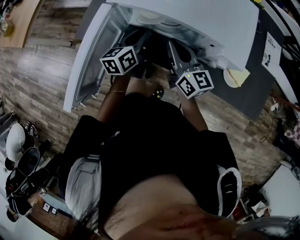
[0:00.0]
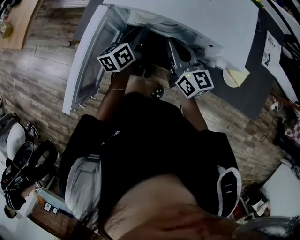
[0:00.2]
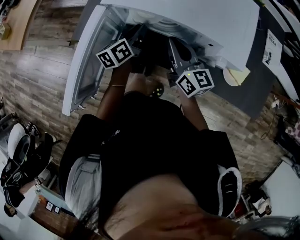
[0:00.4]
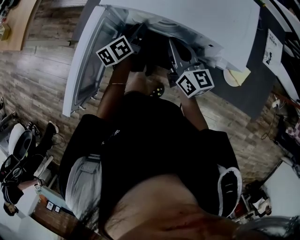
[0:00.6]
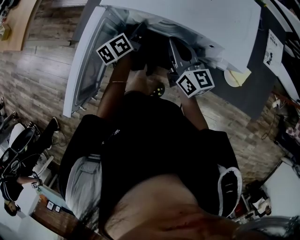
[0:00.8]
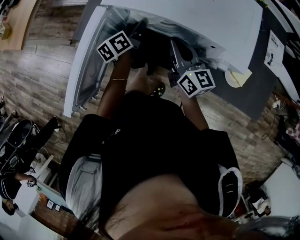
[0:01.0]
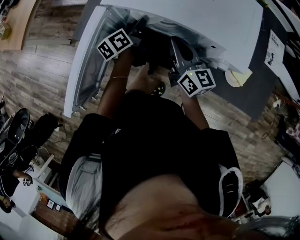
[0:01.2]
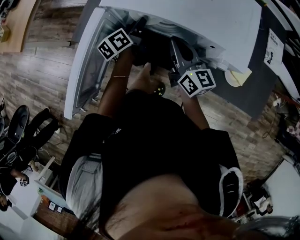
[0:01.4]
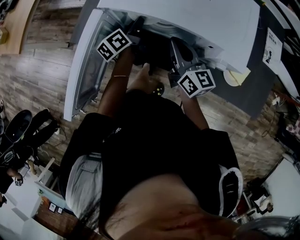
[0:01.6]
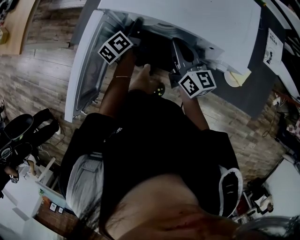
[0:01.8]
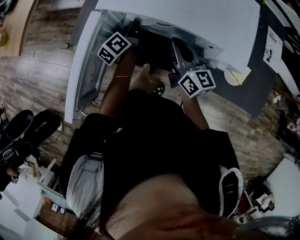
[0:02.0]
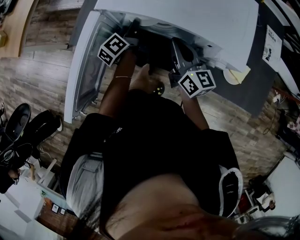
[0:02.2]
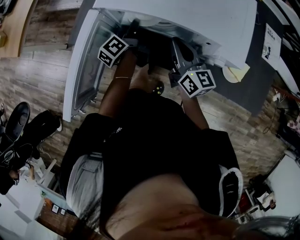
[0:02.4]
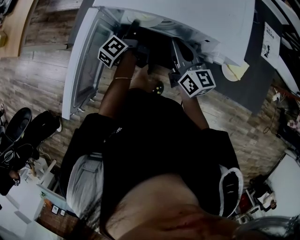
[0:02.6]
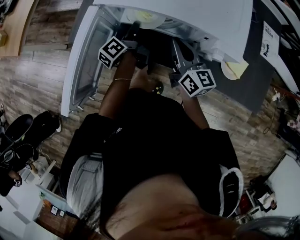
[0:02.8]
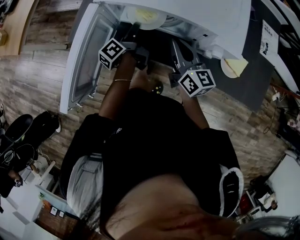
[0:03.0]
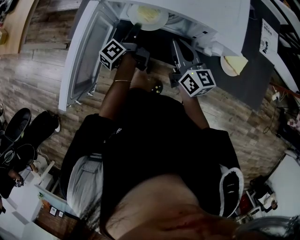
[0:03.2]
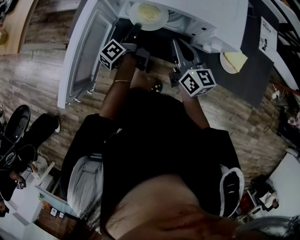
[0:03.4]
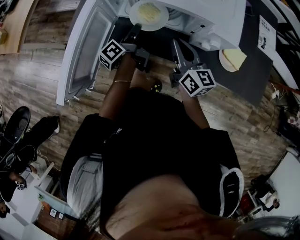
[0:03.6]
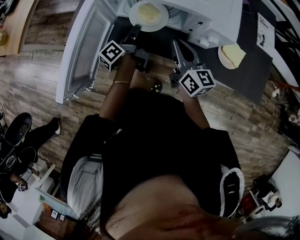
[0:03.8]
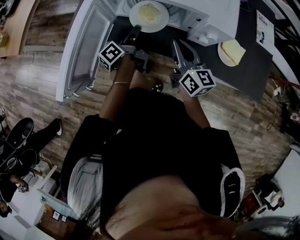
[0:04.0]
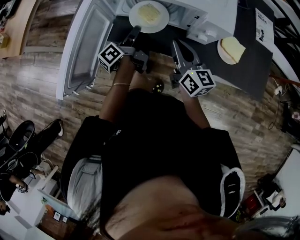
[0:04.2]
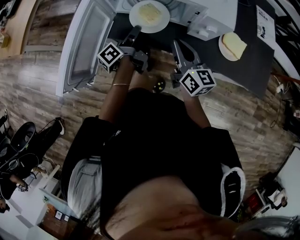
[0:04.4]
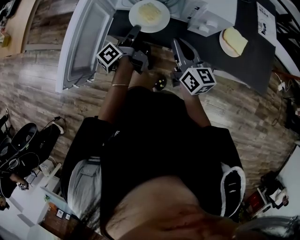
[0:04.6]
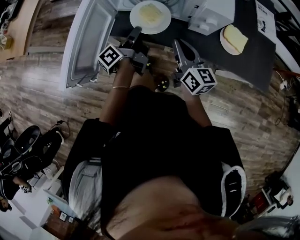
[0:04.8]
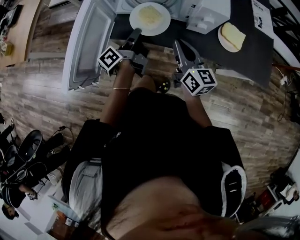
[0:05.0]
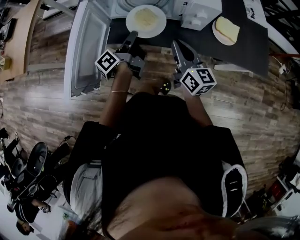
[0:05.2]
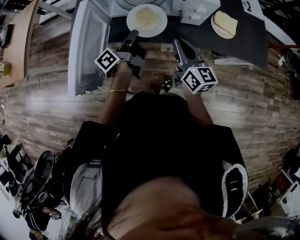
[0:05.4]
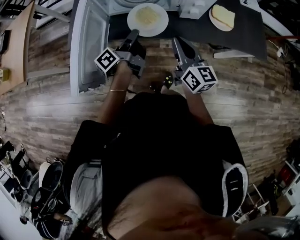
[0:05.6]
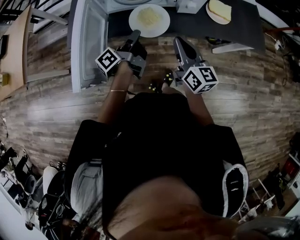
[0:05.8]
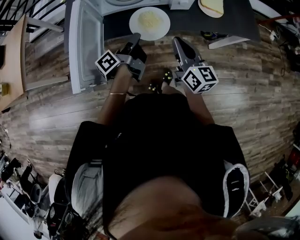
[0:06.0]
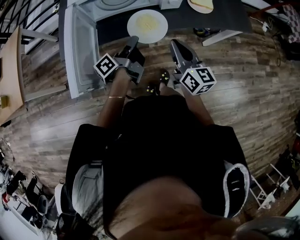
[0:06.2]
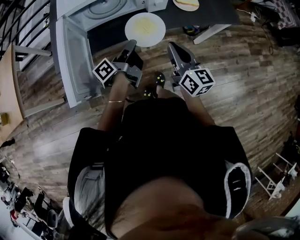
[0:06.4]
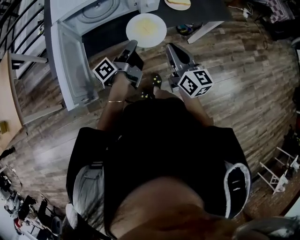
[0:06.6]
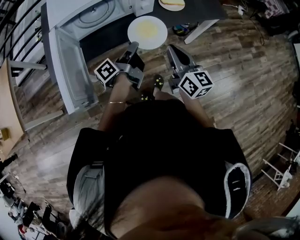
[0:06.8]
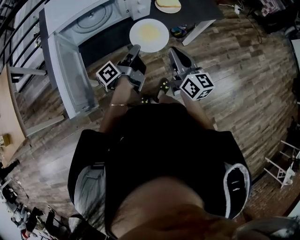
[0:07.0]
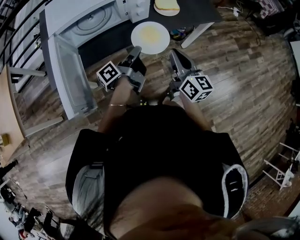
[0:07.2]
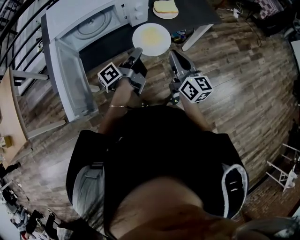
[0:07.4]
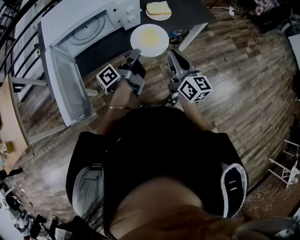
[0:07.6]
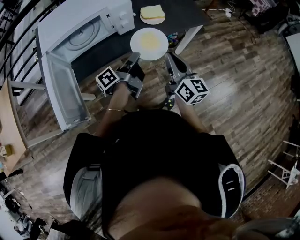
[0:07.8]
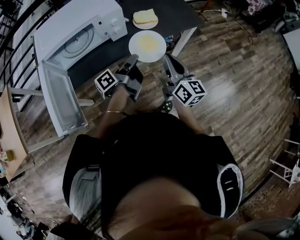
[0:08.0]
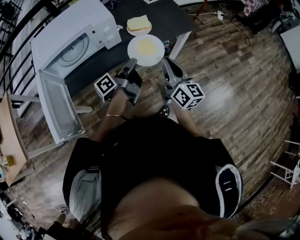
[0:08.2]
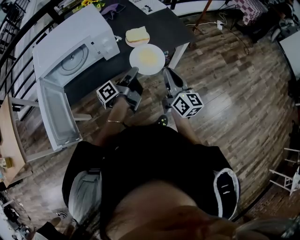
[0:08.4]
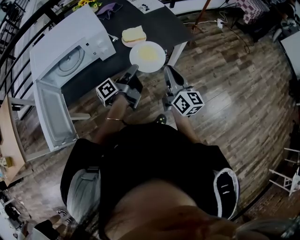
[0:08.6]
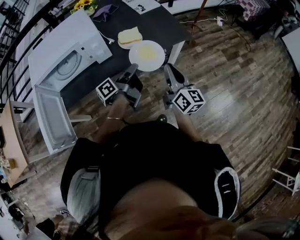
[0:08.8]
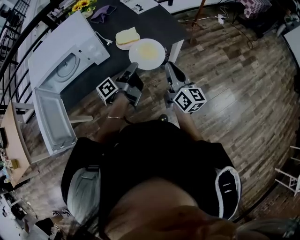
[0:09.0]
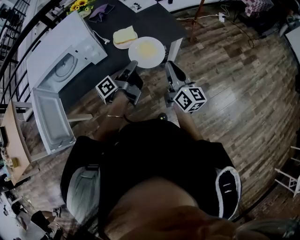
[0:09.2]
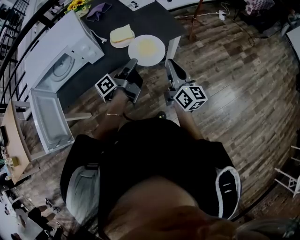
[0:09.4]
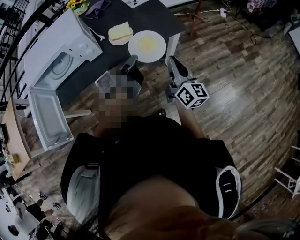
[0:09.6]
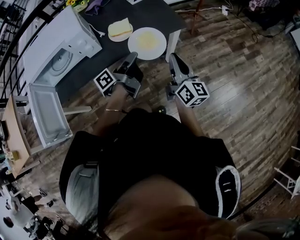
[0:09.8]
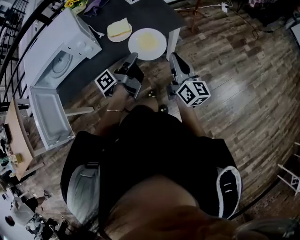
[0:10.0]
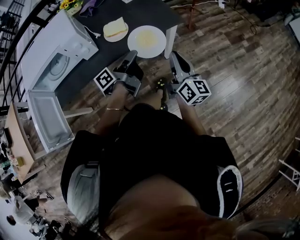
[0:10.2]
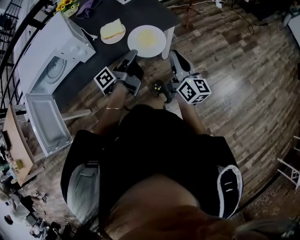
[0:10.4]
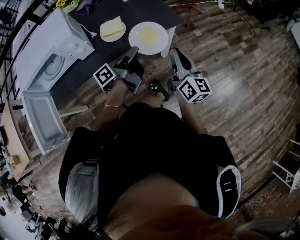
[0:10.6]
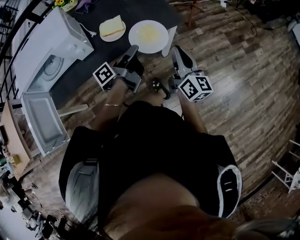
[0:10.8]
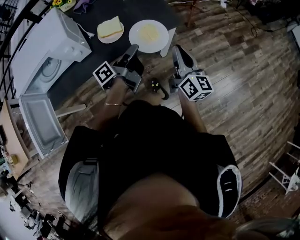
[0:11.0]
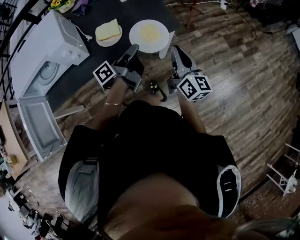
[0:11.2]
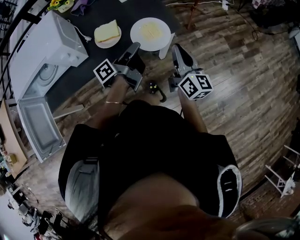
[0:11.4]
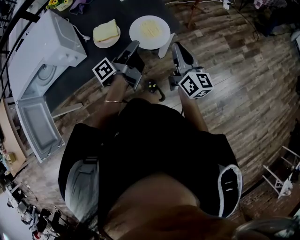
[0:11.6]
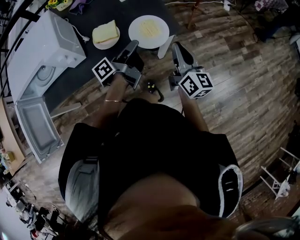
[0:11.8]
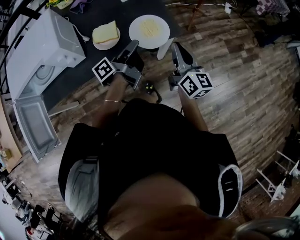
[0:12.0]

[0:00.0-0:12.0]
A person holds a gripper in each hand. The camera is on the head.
0:00.0 to 0:01.6: The left gripper heads forward, covering approximately 5 cm, and changes its angle by approximately 30 degrees.
0:01.6 to 0:03.0: The left gripper swivels some 20 degrees, and closes up.
0:03.0 to 0:04.4: Both grippers move backward, approximately 10 cm.
0:04.4 to 0:06.0: The two grippers go approximately 10 cm backward. The right gripper changes its angle by about 20 degrees; the left gripper changes its angle by some 30 degrees.
0:06.0 to 0:07.6: The grippers both shift to the right by roughly 15 cm. The left gripper turns by approximately 20 degrees.
0:07.6 to 0:09.0: The grippers both shift to the right and forward by about 20 cm.
0:09.0 to 0:10.4: The grippers both shift to the right by roughly 10 cm.
0:10.4 to 0:12.0: The two grippers go roughly 15 cm forward.

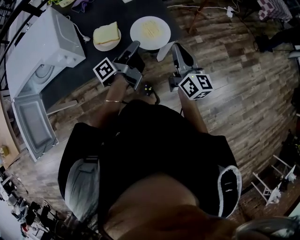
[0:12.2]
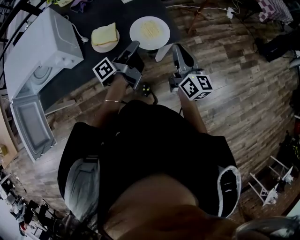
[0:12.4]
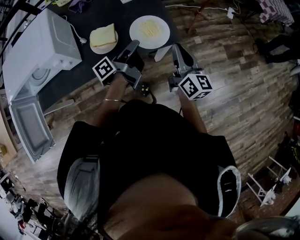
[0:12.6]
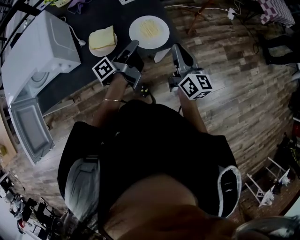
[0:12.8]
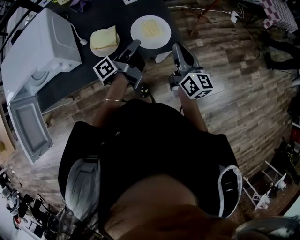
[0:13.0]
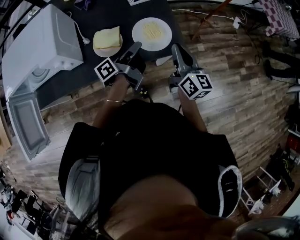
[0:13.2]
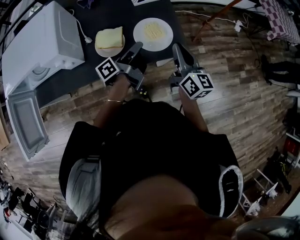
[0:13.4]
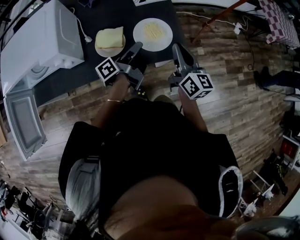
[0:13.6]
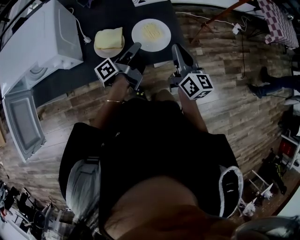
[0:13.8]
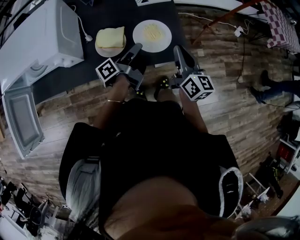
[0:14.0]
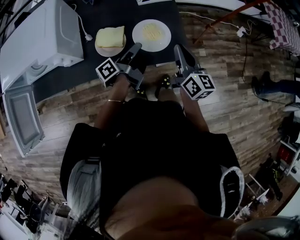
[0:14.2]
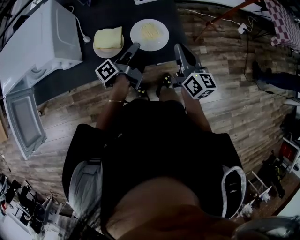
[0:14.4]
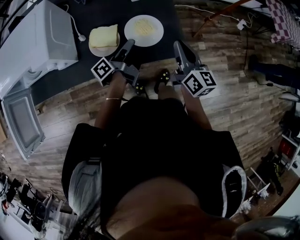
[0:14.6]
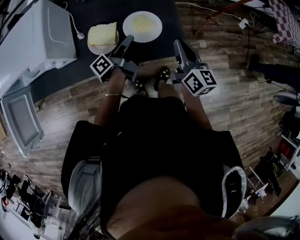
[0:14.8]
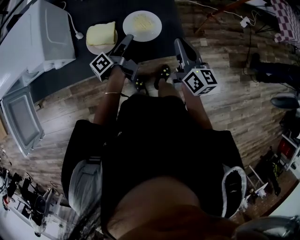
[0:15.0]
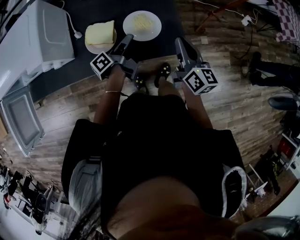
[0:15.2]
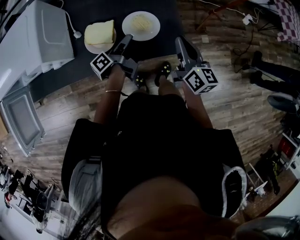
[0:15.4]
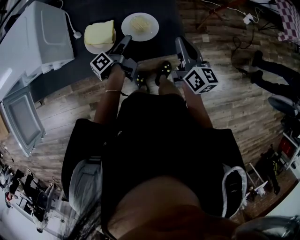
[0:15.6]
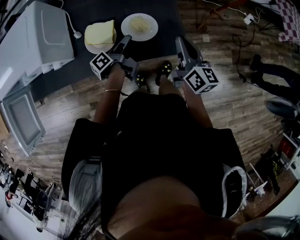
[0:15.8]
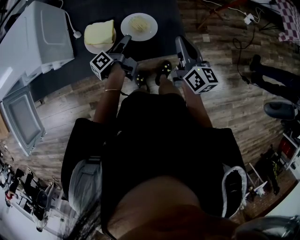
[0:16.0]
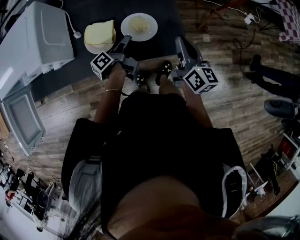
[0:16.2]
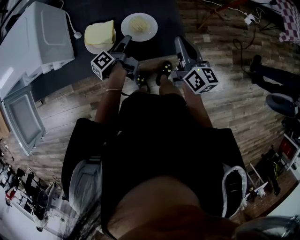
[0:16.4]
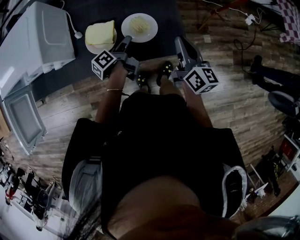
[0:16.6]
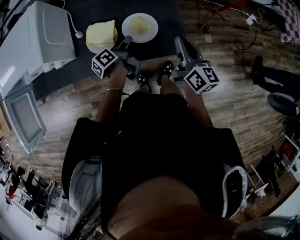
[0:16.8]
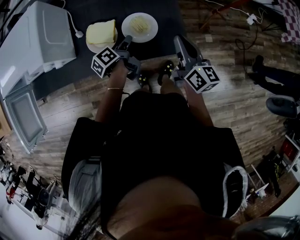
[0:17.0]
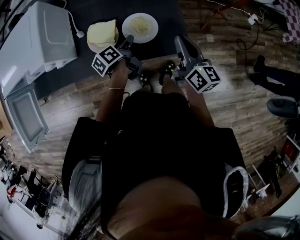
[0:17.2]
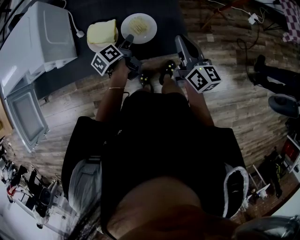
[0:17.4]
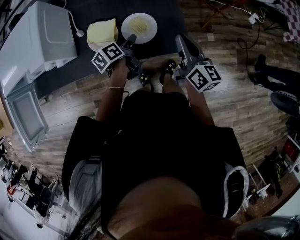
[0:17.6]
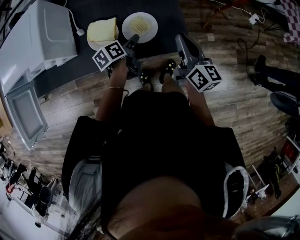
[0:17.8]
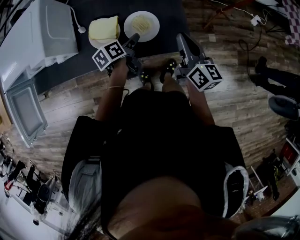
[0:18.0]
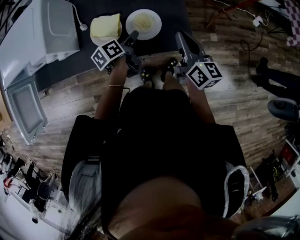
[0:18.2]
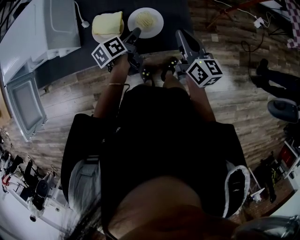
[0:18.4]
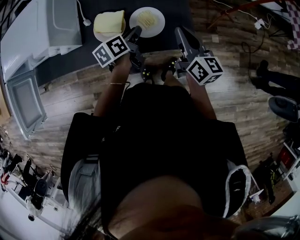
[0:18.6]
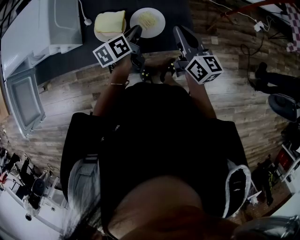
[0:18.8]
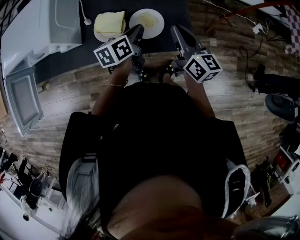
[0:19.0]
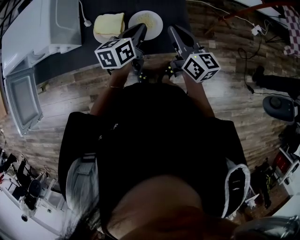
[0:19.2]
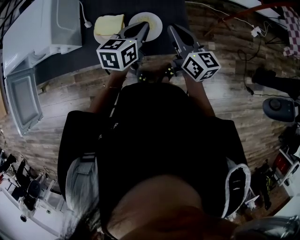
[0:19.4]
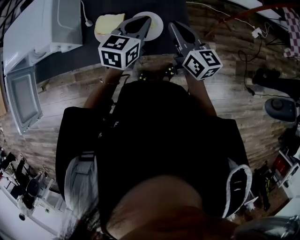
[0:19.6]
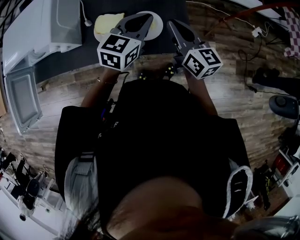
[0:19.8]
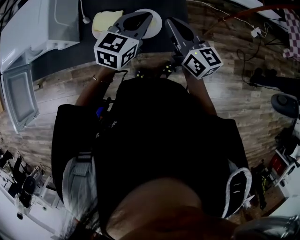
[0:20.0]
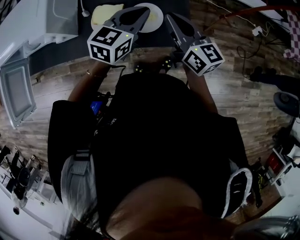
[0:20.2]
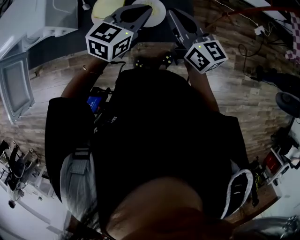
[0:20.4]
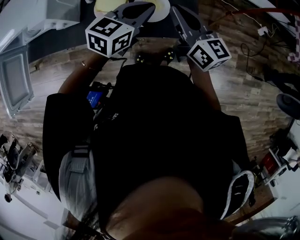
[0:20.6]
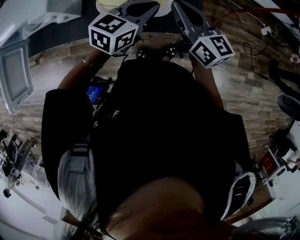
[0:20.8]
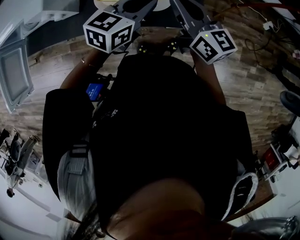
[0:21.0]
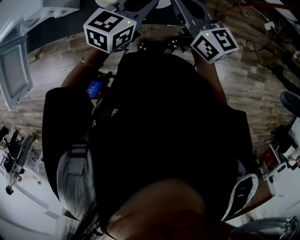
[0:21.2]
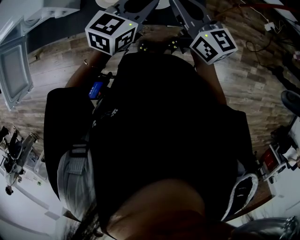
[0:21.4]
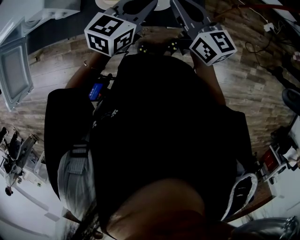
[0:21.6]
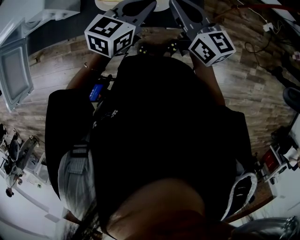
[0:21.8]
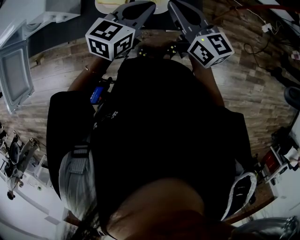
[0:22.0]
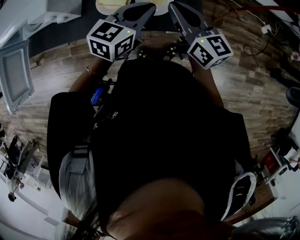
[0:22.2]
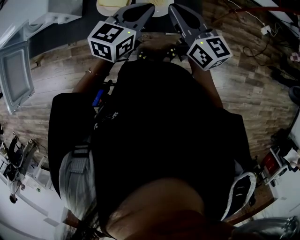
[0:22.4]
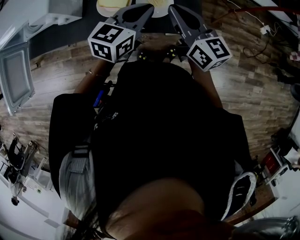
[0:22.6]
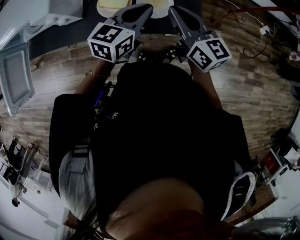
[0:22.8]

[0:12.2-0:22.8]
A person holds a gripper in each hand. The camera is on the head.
0:12.2 to 0:13.8: The two grippers go about 10 cm forward.
0:13.8 to 0:15.2: The left gripper travels downward by approximately 5 cm. The right gripper moves some 5 cm.
0:15.2 to 0:16.8: The left gripper turns by roughly 20 degrees.
0:16.8 to 0:18.2: The left gripper changes its angle by some 20 degrees, and opens up.
0:18.2 to 0:19.8: The left gripper moves upward, some 20 cm, twists some 60 degrees clockwise, seen from behind, and closes; the right gripper moves some 5 cm.
0:19.8 to 0:21.2: The left gripper changes place by some 5 cm.
0:21.2 to 0:22.8: The grippers make only small movements.

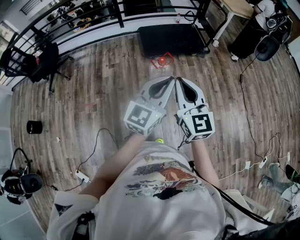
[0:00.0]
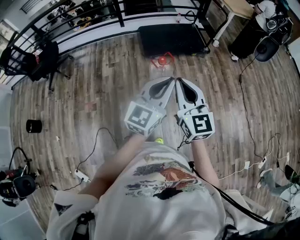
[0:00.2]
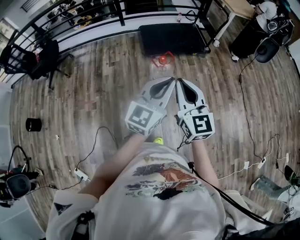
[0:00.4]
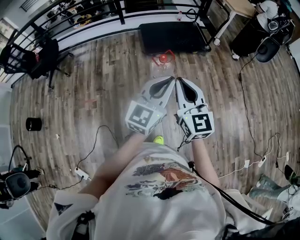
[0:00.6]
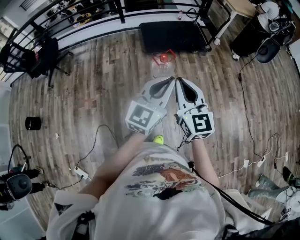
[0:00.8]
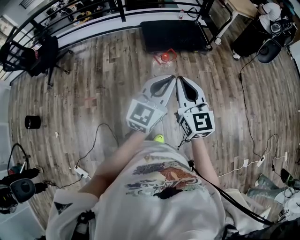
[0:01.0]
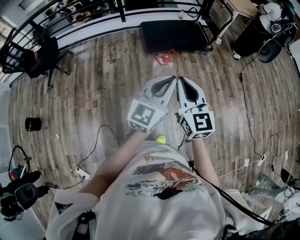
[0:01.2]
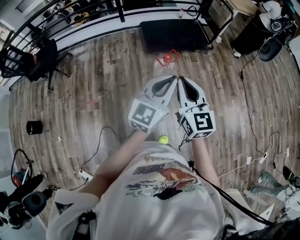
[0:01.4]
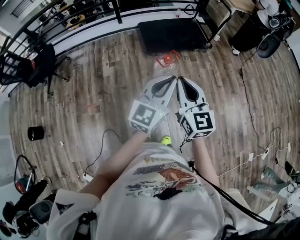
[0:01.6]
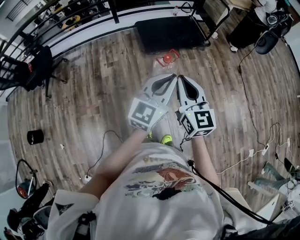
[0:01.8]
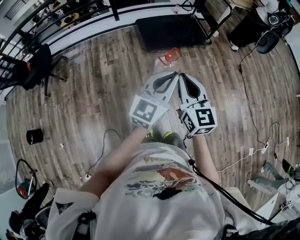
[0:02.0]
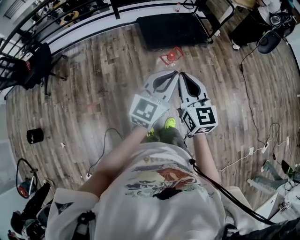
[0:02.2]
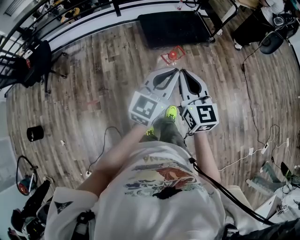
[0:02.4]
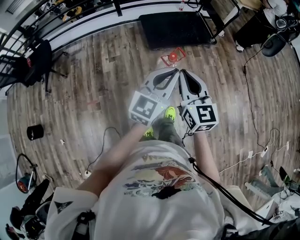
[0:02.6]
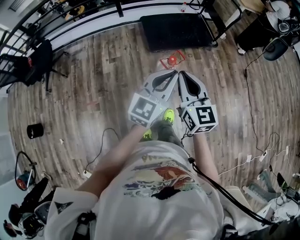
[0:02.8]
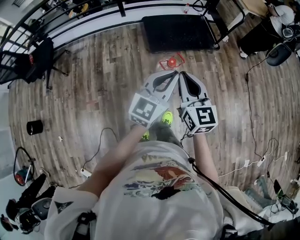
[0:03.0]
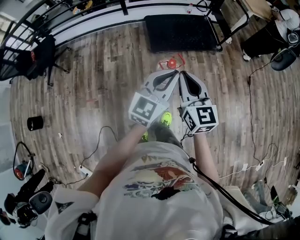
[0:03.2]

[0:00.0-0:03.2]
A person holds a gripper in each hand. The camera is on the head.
0:00.0 to 0:01.6: The two grippers go about 10 cm to the left and forward.
0:01.6 to 0:03.2: Both grippers move forward, about 20 cm.
